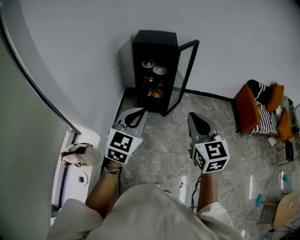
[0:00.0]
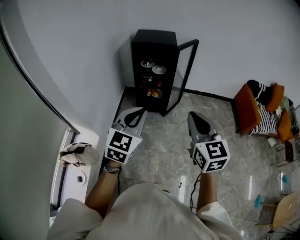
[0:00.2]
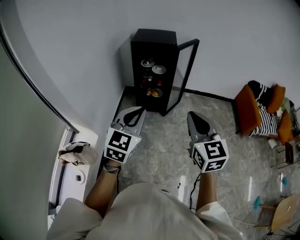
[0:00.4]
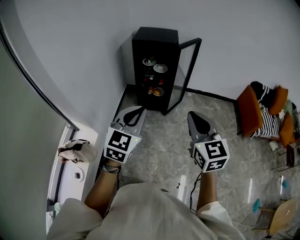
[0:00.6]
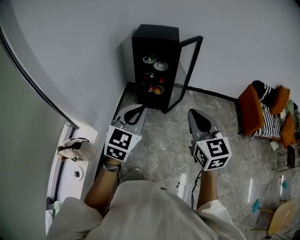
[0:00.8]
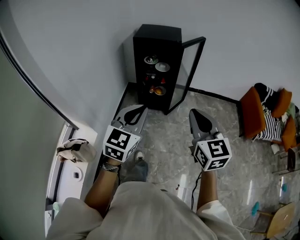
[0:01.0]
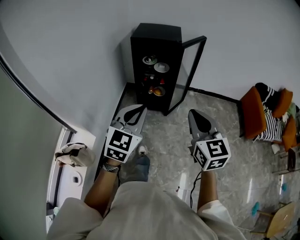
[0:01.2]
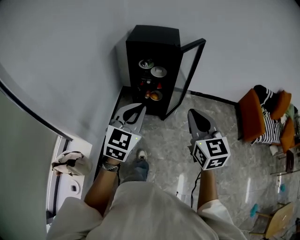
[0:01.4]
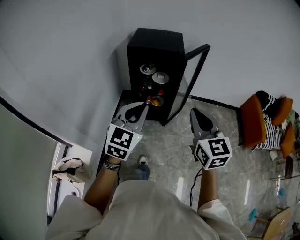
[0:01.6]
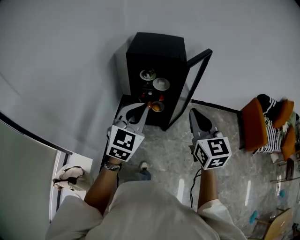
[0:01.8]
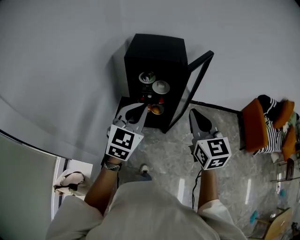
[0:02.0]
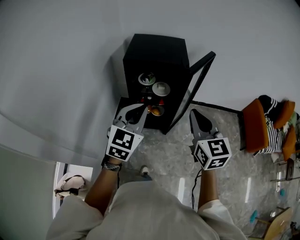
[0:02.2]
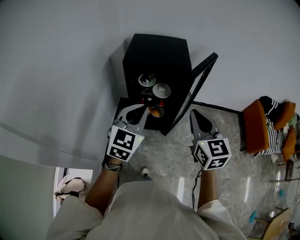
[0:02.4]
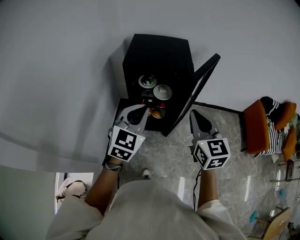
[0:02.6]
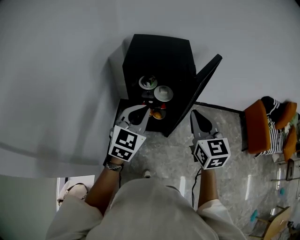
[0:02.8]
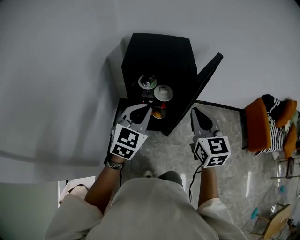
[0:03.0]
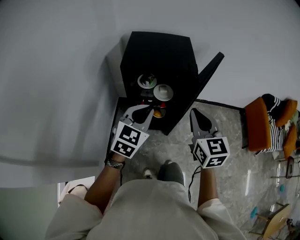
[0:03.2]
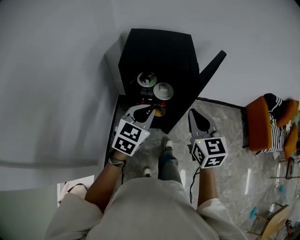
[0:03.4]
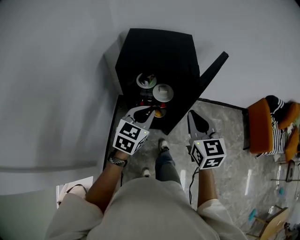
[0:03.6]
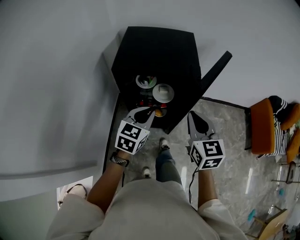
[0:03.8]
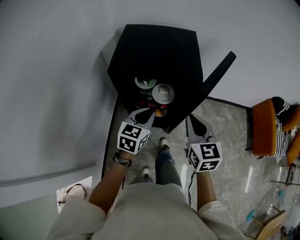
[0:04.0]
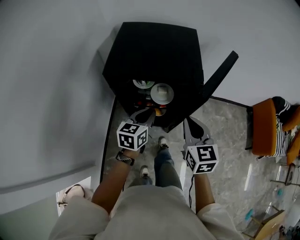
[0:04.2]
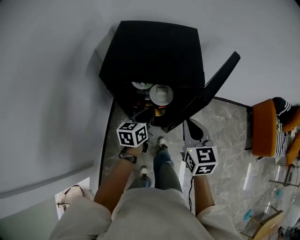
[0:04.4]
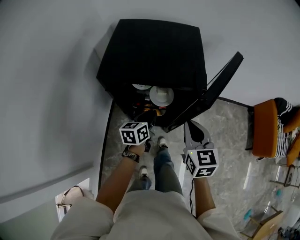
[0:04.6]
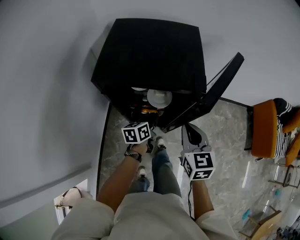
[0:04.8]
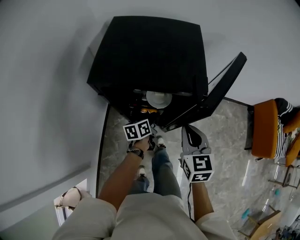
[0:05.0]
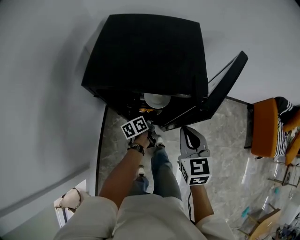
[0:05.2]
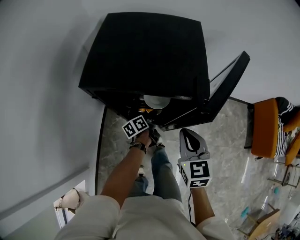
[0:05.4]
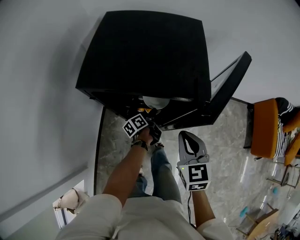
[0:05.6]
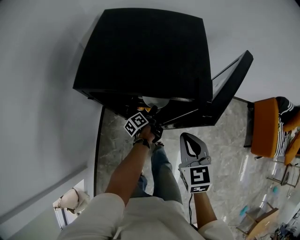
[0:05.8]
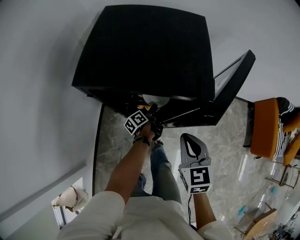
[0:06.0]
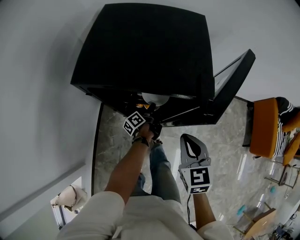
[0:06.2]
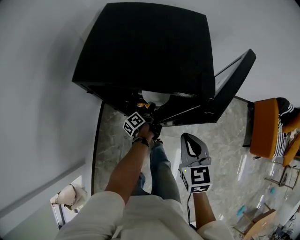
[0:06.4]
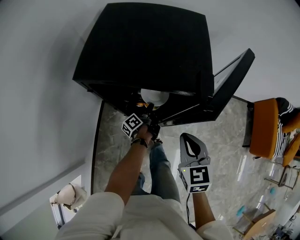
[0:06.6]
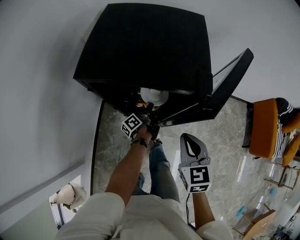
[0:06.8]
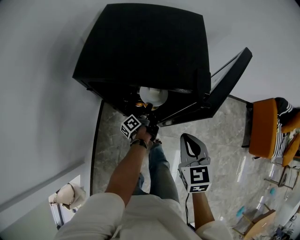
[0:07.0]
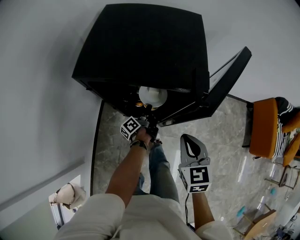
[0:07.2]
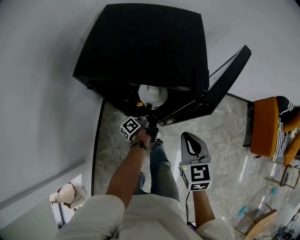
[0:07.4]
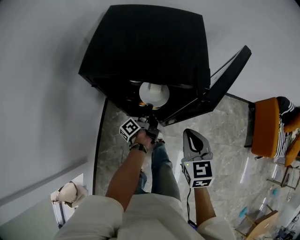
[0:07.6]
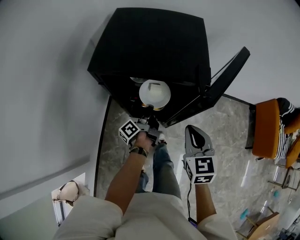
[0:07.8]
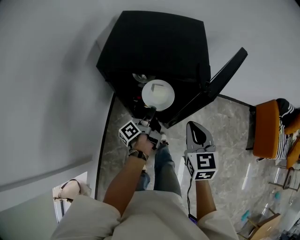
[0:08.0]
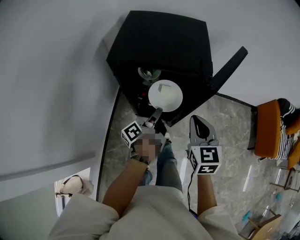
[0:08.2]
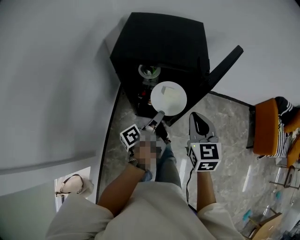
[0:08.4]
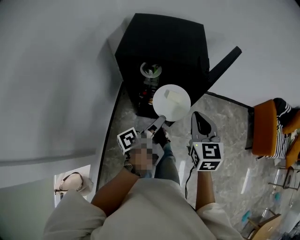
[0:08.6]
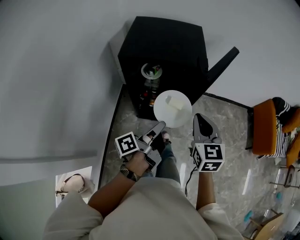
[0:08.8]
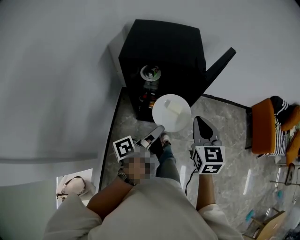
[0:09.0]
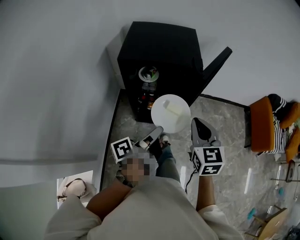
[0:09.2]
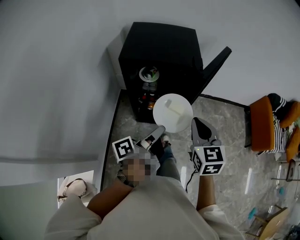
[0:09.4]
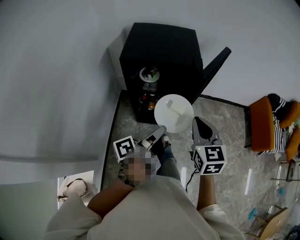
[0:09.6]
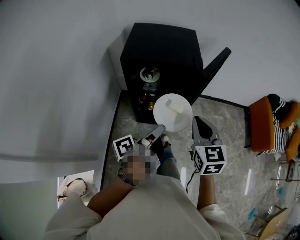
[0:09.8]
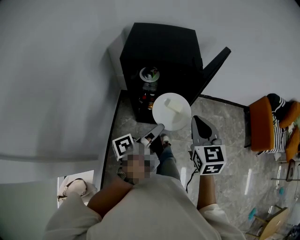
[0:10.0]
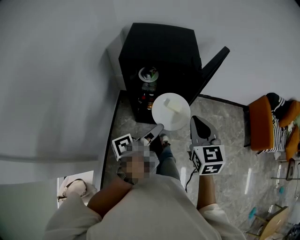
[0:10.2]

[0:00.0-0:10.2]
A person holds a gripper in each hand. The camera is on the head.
0:00.0 to 0:01.4: The two grippers go some 20 cm forward.
0:01.4 to 0:03.0: The grippers both shift forward by approximately 35 cm.
0:03.0 to 0:04.4: The right gripper moves forward and downward, about 20 cm. The left gripper moves downward and forward, roughly 30 cm, and twists about 50 degrees counterclockwise, seen from behind.
0:04.4 to 0:05.8: The right gripper heads downward, covering roughly 5 cm. Meanwhile the left gripper is displaced downward and forward by roughly 25 cm, and rotates around the line of its fingers by about 60 degrees, counterclockwise from behind.
0:05.8 to 0:07.2: The grippers move only a little.
0:07.2 to 0:08.8: The right gripper is displaced upward and backward by approximately 15 cm. Meanwhile the left gripper heads upward and backward, covering some 40 cm, and rotates approximately 20 degrees.
0:08.8 to 0:10.2: The left gripper shifts by about 5 cm, while the right gripper moves backward, some 5 cm.

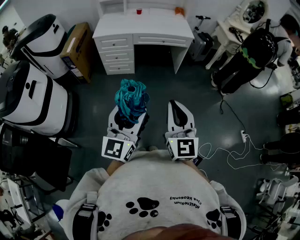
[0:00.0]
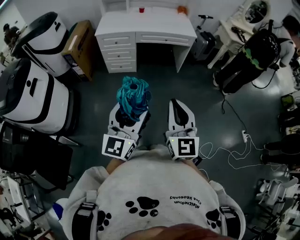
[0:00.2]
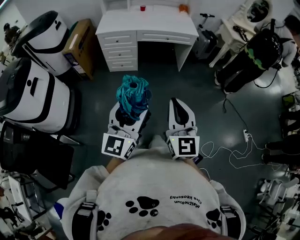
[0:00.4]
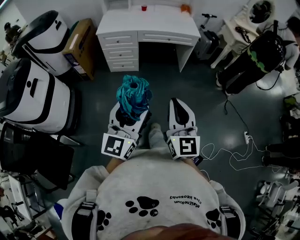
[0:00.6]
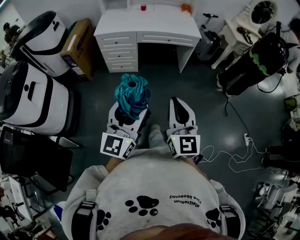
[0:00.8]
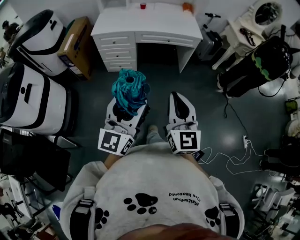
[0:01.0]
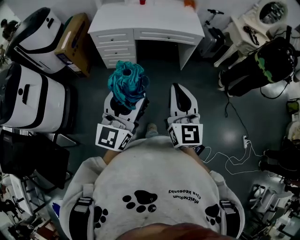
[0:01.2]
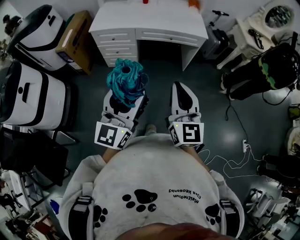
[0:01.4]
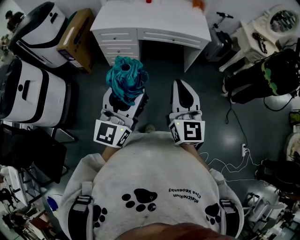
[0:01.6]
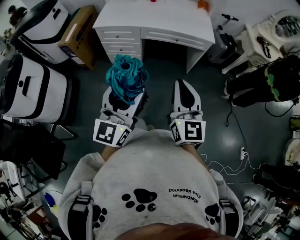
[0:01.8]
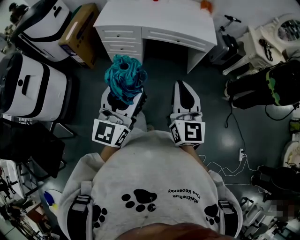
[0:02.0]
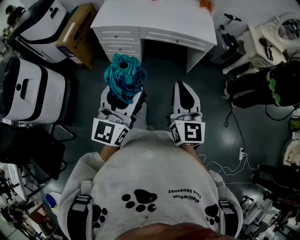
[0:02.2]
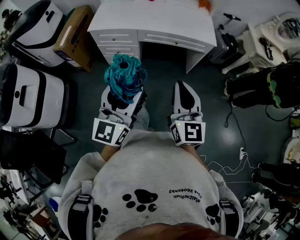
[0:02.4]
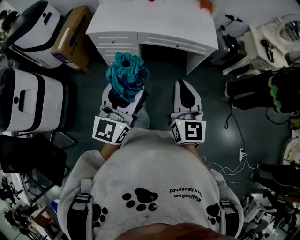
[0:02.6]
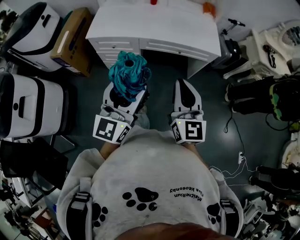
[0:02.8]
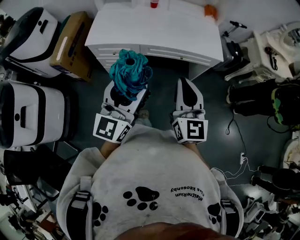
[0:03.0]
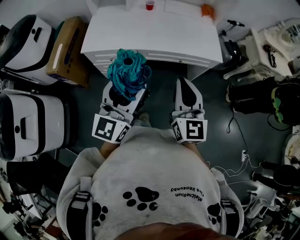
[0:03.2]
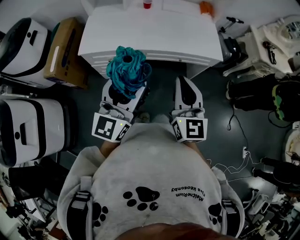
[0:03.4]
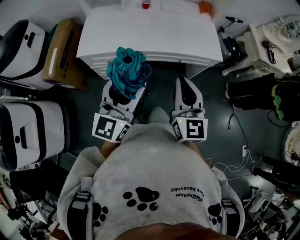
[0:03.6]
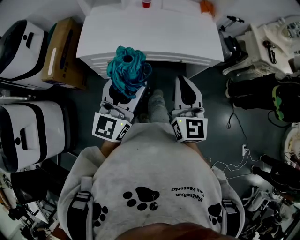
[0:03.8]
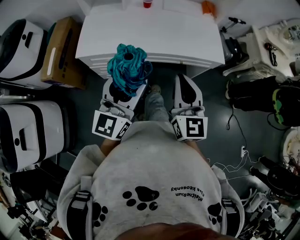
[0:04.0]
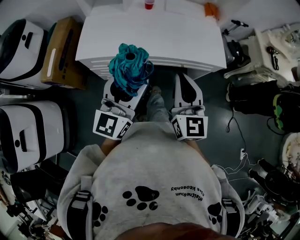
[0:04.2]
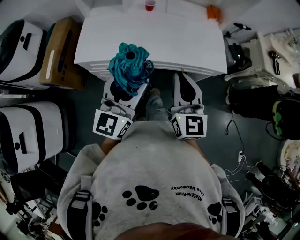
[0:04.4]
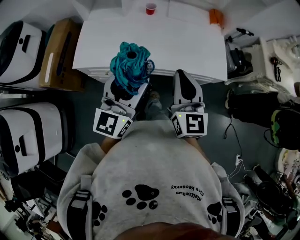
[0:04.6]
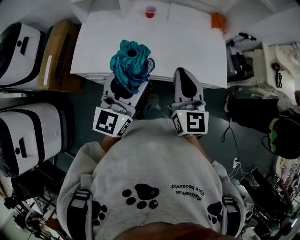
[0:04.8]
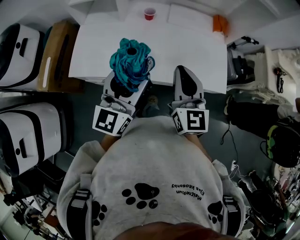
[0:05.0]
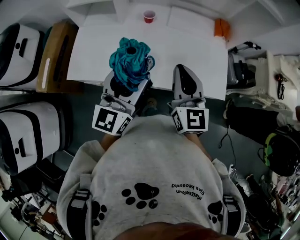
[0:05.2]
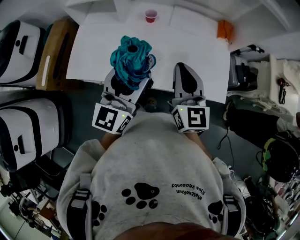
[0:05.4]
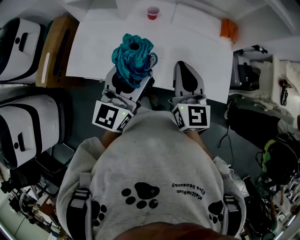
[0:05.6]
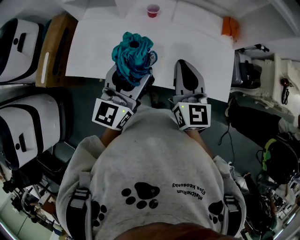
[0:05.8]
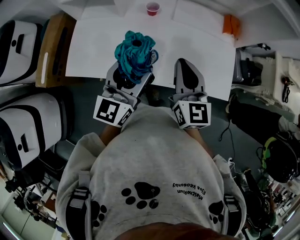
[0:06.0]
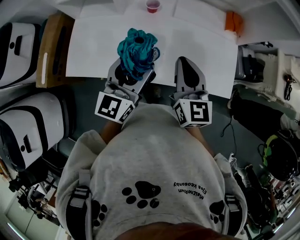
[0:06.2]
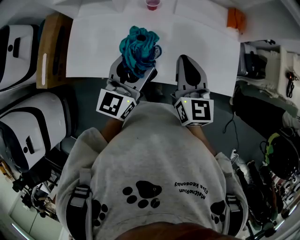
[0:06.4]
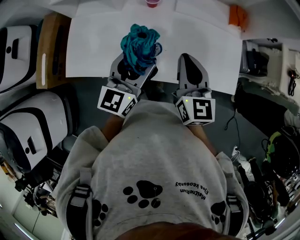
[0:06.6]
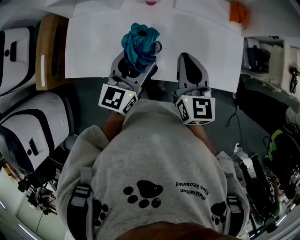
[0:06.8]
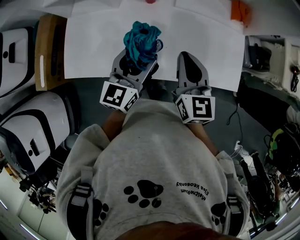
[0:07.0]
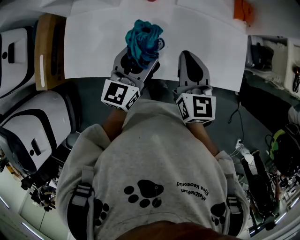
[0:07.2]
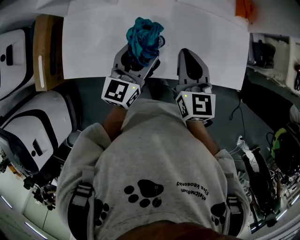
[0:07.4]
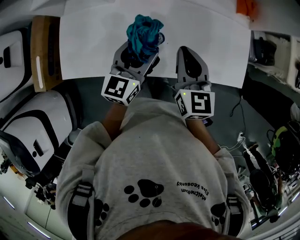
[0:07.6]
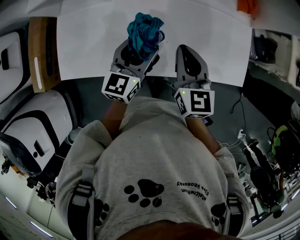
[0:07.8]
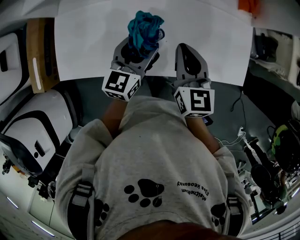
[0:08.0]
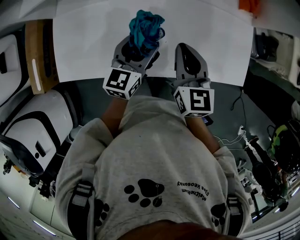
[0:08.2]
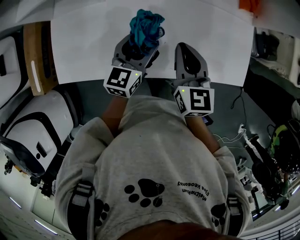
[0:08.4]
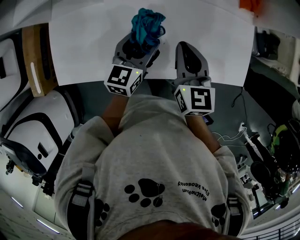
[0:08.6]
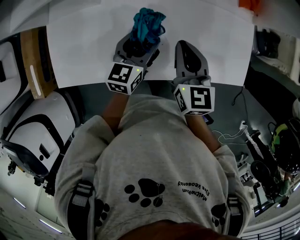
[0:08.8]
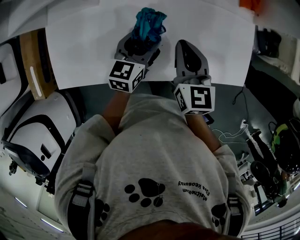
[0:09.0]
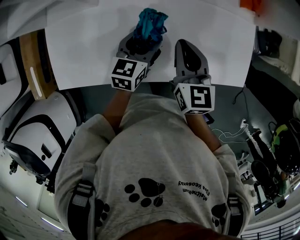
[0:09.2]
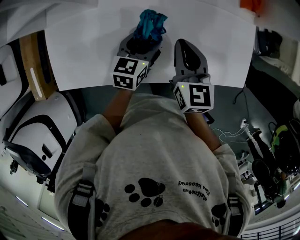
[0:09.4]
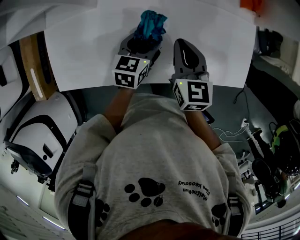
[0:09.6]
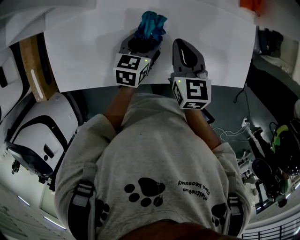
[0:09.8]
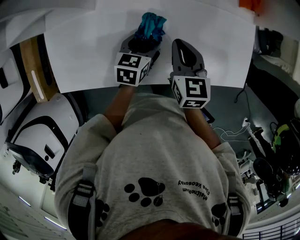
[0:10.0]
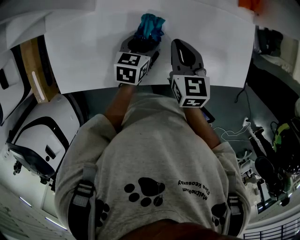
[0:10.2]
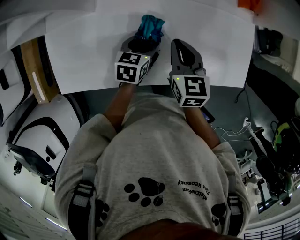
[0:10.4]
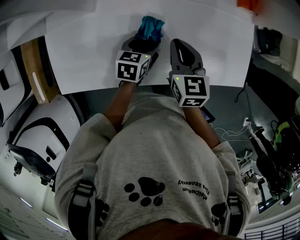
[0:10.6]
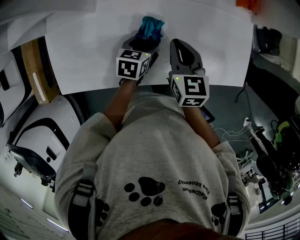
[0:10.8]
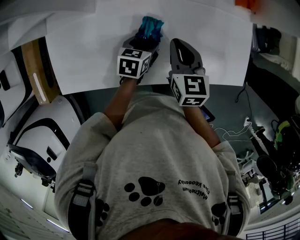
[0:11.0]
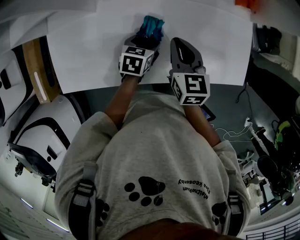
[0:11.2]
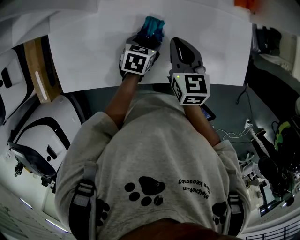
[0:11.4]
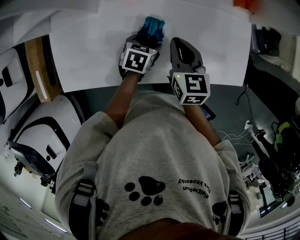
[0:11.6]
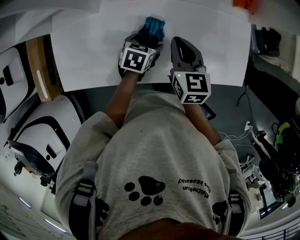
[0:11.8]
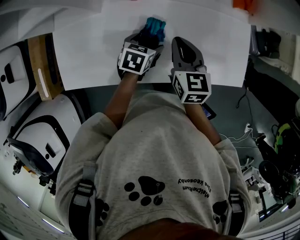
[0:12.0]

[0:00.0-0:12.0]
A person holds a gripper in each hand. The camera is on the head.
0:00.0 to 0:01.6: The grippers both shift forward by approximately 30 cm.
0:01.6 to 0:03.0: Both grippers move forward, approximately 30 cm.
0:03.0 to 0:04.4: The grippers both shift forward by about 20 cm.
0:04.4 to 0:06.0: Both grippers travel together forward, roughly 30 cm.
0:06.0 to 0:07.6: The grippers both shift downward and forward by some 15 cm.
0:07.6 to 0:09.0: The left gripper goes approximately 10 cm downward and forward; the right gripper goes some 10 cm forward and downward.
0:09.0 to 0:10.4: The left gripper heads downward, covering approximately 5 cm.
0:10.4 to 0:12.0: The grippers stay close to where they were, moving slightly.

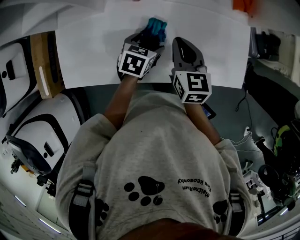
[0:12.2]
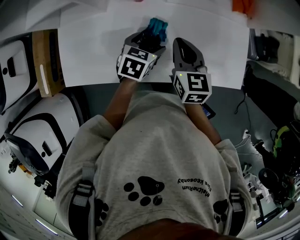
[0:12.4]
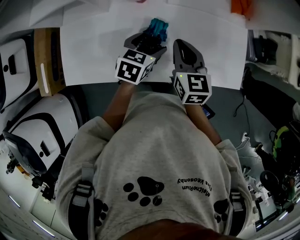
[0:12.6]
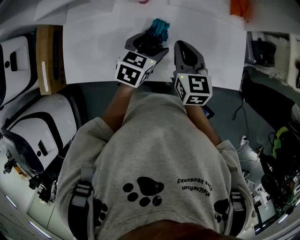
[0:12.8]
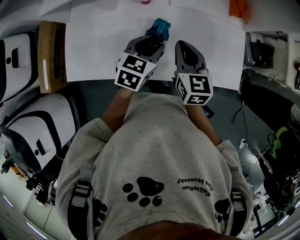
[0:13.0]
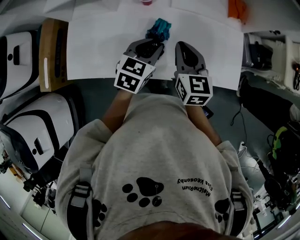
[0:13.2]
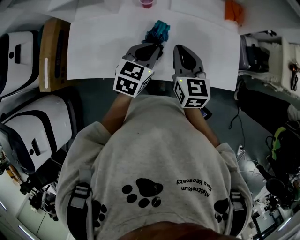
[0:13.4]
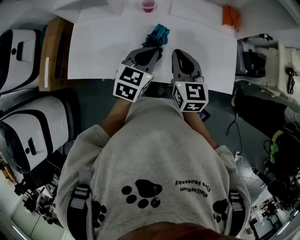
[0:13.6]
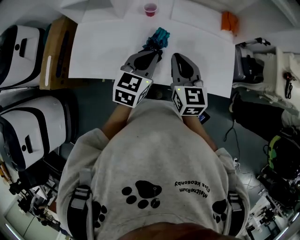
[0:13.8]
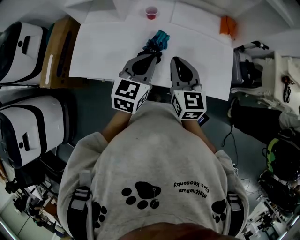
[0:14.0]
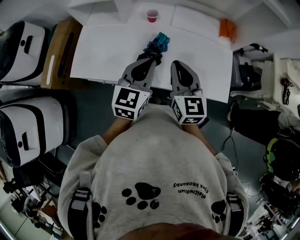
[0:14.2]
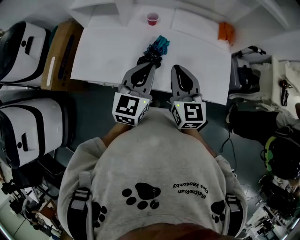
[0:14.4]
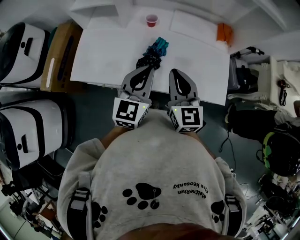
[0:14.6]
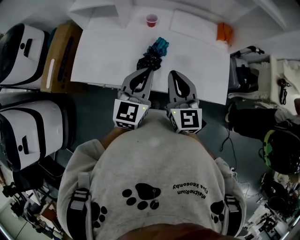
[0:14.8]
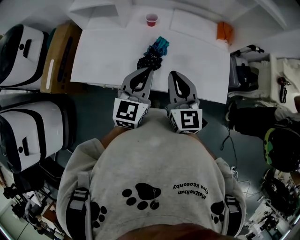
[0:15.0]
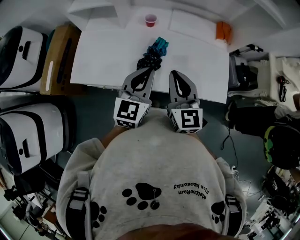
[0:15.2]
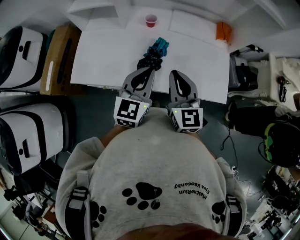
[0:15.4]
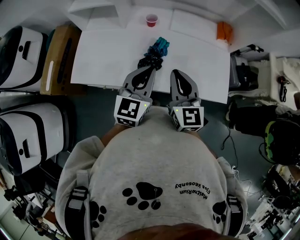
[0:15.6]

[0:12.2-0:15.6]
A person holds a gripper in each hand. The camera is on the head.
0:12.2 to 0:13.8: The left gripper heads upward and backward, covering roughly 20 cm, tilts its fingers about 30 degrees upward, and closes; the right gripper travels backward and upward by some 15 cm.
0:13.8 to 0:15.6: Both grippers travel together backward, approximately 5 cm.
